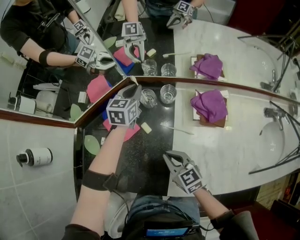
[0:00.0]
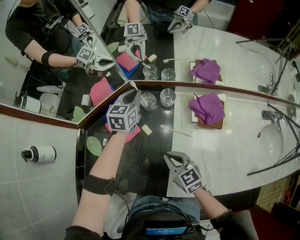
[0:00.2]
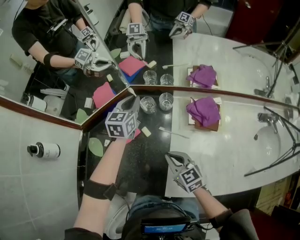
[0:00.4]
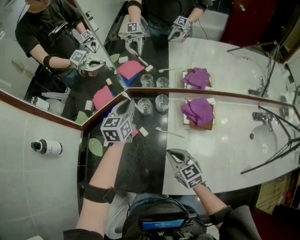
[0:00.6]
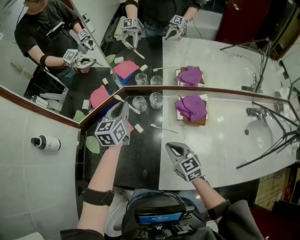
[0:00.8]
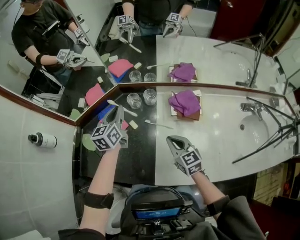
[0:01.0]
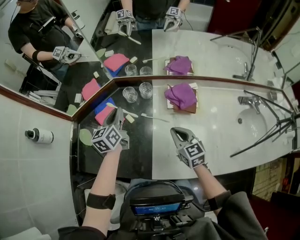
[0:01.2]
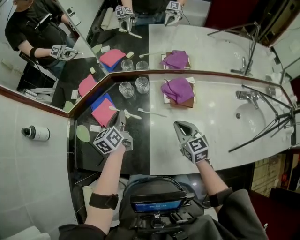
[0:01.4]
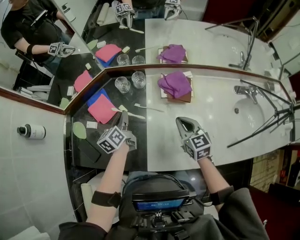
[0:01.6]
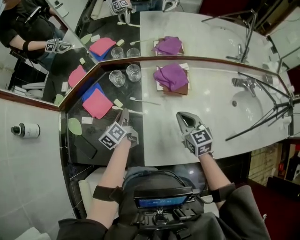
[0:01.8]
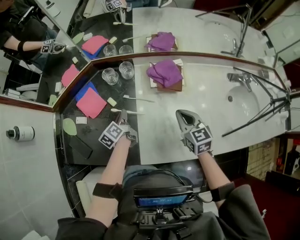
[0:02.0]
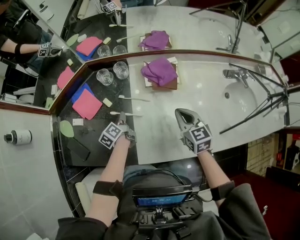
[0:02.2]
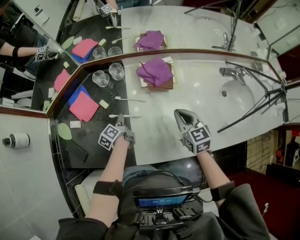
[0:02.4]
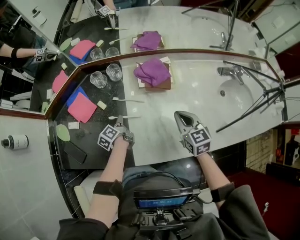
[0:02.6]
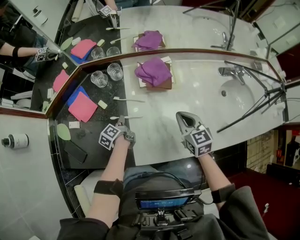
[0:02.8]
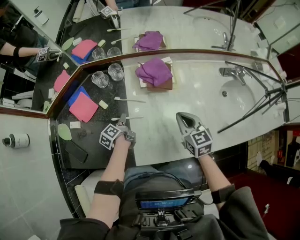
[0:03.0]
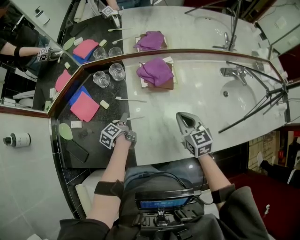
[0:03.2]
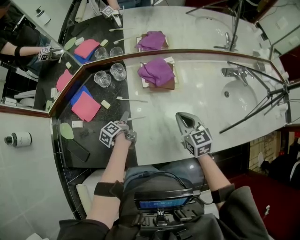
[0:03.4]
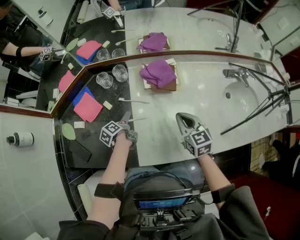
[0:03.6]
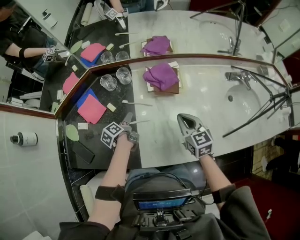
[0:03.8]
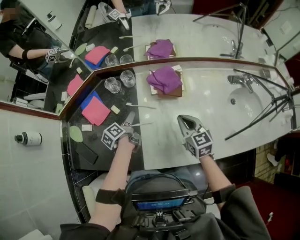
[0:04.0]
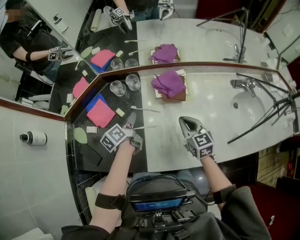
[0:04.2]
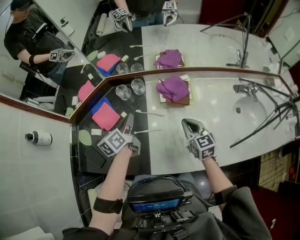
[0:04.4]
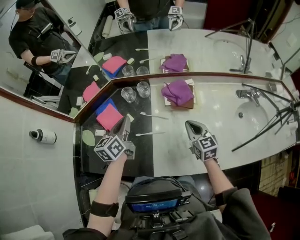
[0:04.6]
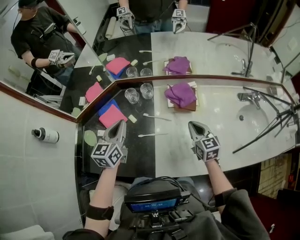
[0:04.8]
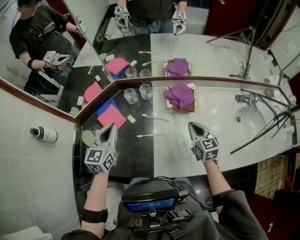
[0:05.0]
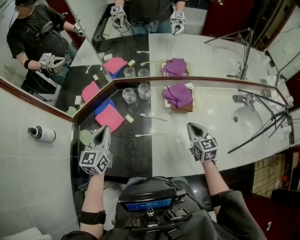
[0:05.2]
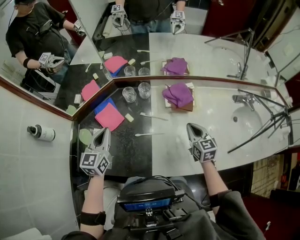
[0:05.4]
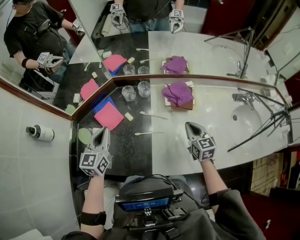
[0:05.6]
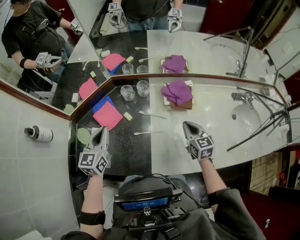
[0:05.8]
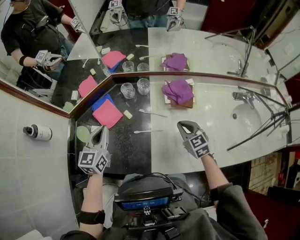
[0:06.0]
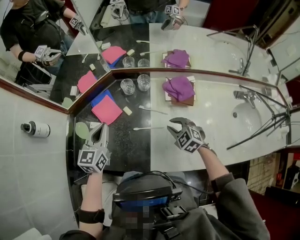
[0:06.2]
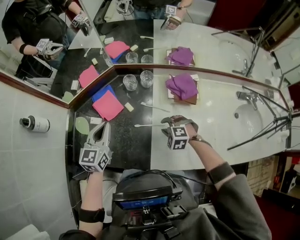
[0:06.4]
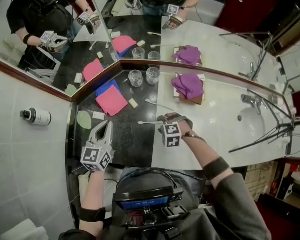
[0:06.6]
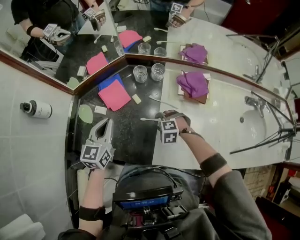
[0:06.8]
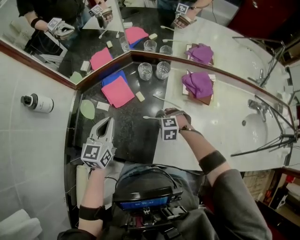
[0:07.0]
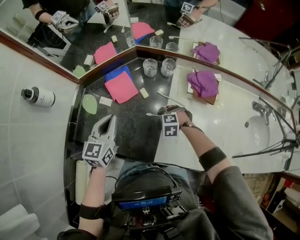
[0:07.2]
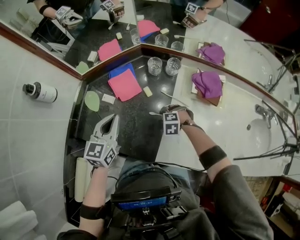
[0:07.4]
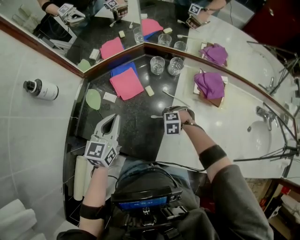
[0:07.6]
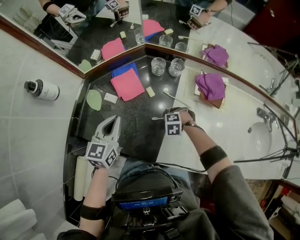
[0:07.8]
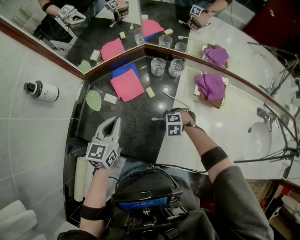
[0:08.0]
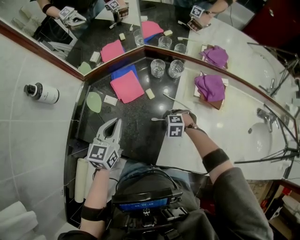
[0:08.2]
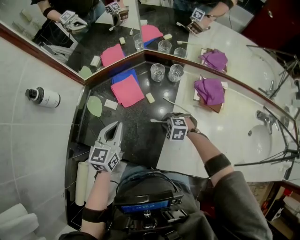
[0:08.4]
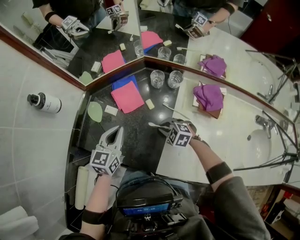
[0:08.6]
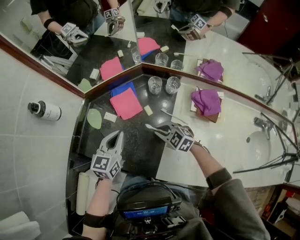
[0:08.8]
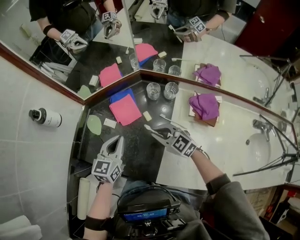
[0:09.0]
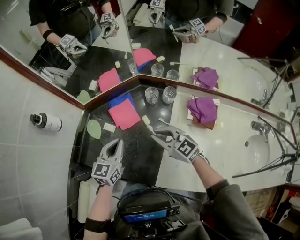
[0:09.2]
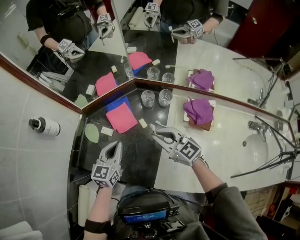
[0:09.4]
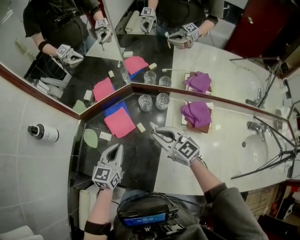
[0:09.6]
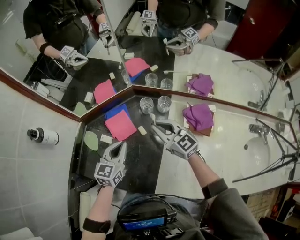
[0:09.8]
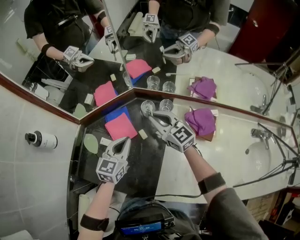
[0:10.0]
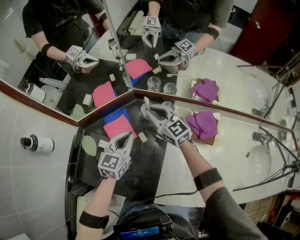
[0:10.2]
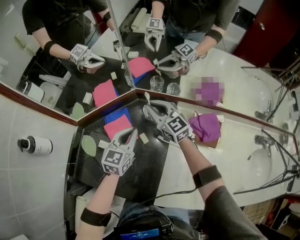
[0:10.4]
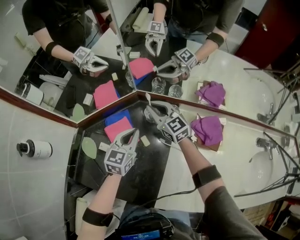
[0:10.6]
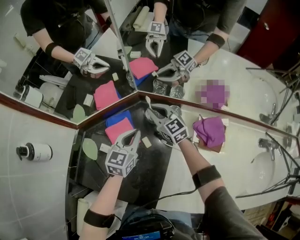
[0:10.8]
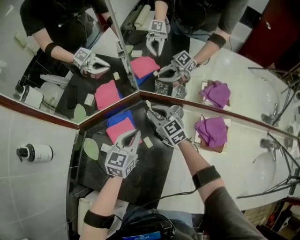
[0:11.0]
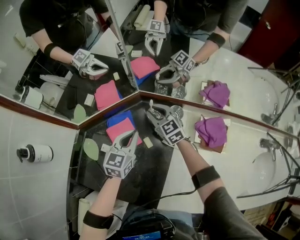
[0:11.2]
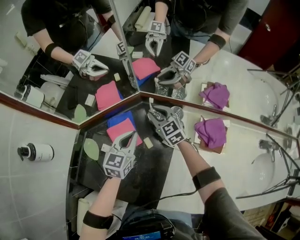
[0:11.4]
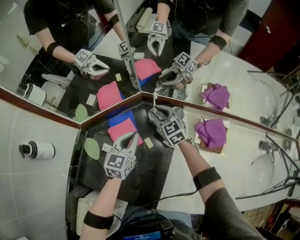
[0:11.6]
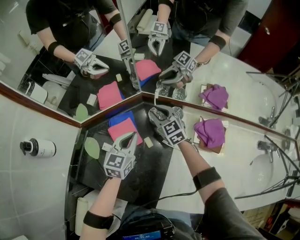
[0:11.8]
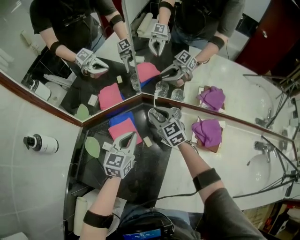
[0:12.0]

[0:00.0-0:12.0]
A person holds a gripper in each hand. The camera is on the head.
0:00.0 to 0:01.6: The right gripper moves to the right, roughly 20 cm, while the left gripper shifts approximately 20 cm backward, and turns by about 40 degrees.
0:01.6 to 0:03.0: The left gripper shifts approximately 15 cm downward, swivels approximately 30 degrees, and opens its fingers, while the right gripper shifts some 10 cm to the right.
0:03.0 to 0:04.4: The right gripper moves some 5 cm, while the left gripper shifts roughly 20 cm upward, changes its angle by roughly 30 degrees, and closes up.
0:04.4 to 0:06.0: The right gripper moves to the left, some 5 cm. Meanwhile the left gripper is displaced to the left by some 15 cm, and changes its angle by approximately 40 degrees.
0:06.0 to 0:07.6: The right gripper goes approximately 20 cm downward, points its fingers about 40 degrees further downward, and opens and closes again. Meanwhile the left gripper changes place by roughly 10 cm.
0:07.6 to 0:09.0: The right gripper goes about 20 cm upward, and tilts its fingers some 50 degrees upward.
0:09.0 to 0:10.4: The right gripper heads forward, covering approximately 20 cm, and changes its angle by about 30 degrees. The left gripper shifts about 15 cm forward and to the right.

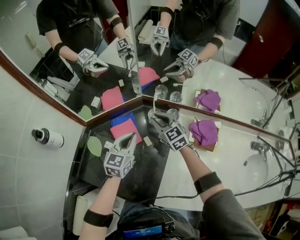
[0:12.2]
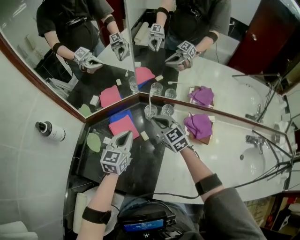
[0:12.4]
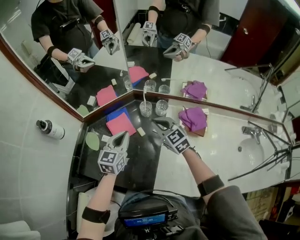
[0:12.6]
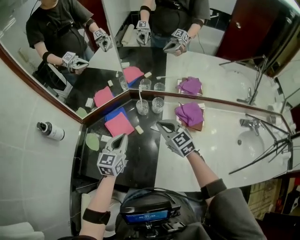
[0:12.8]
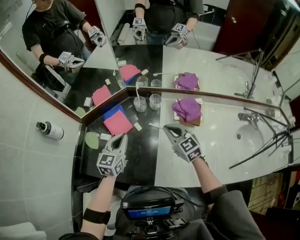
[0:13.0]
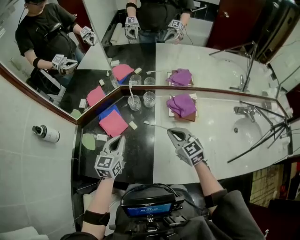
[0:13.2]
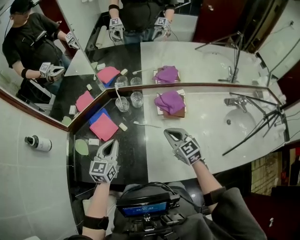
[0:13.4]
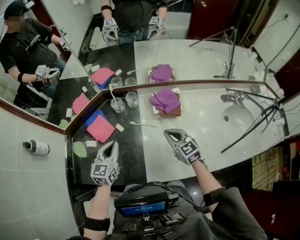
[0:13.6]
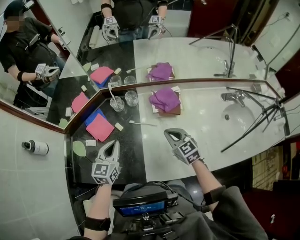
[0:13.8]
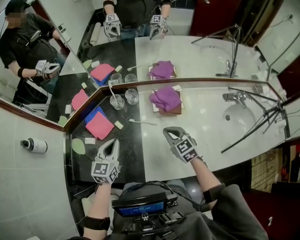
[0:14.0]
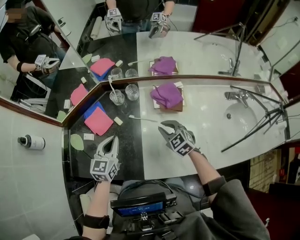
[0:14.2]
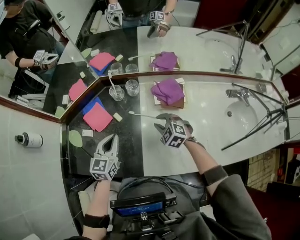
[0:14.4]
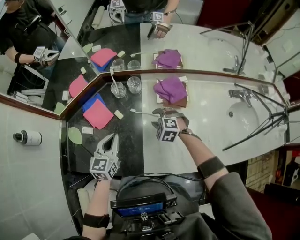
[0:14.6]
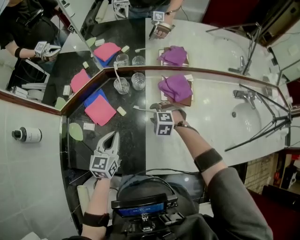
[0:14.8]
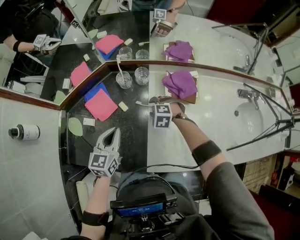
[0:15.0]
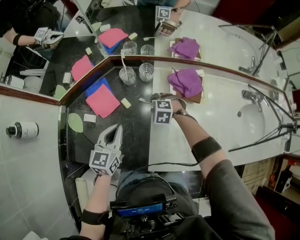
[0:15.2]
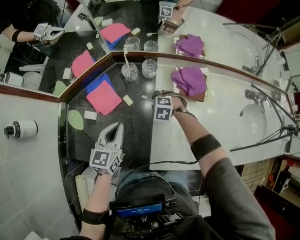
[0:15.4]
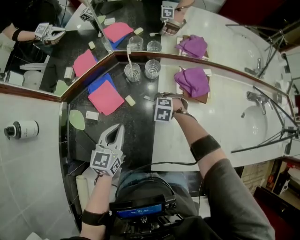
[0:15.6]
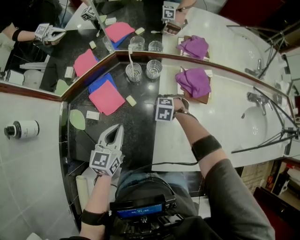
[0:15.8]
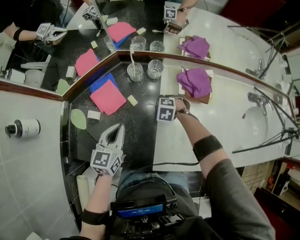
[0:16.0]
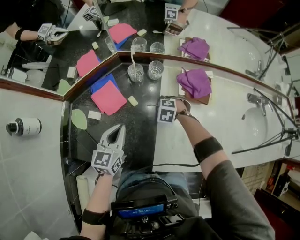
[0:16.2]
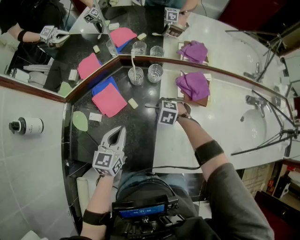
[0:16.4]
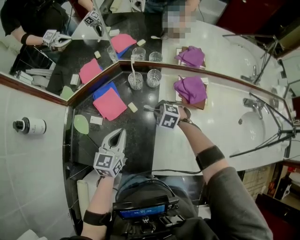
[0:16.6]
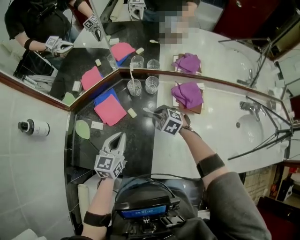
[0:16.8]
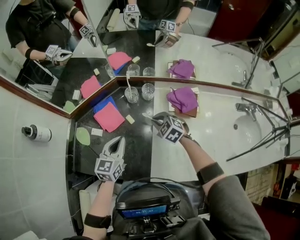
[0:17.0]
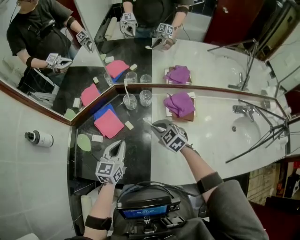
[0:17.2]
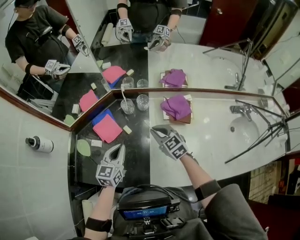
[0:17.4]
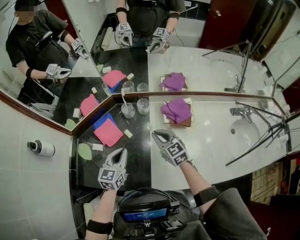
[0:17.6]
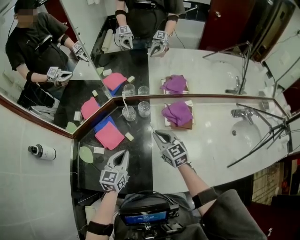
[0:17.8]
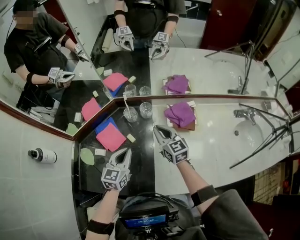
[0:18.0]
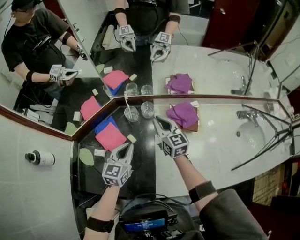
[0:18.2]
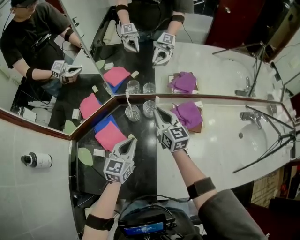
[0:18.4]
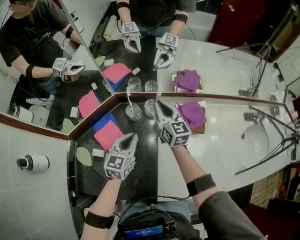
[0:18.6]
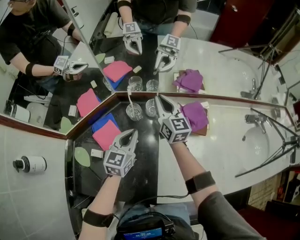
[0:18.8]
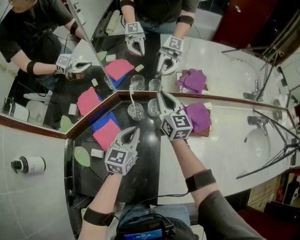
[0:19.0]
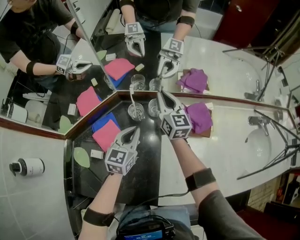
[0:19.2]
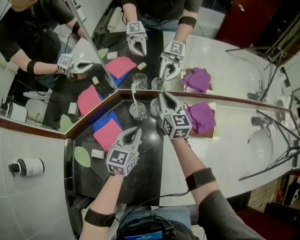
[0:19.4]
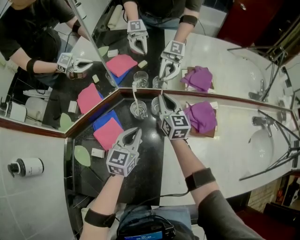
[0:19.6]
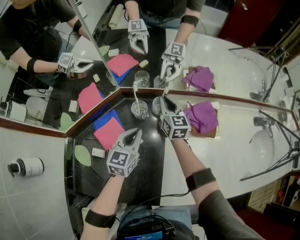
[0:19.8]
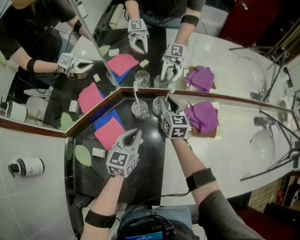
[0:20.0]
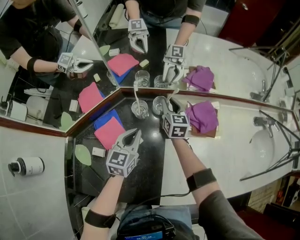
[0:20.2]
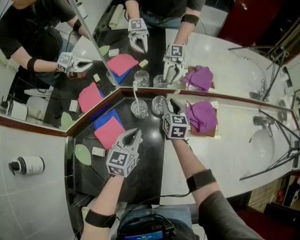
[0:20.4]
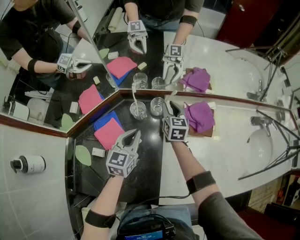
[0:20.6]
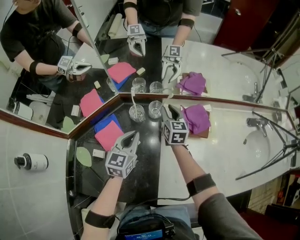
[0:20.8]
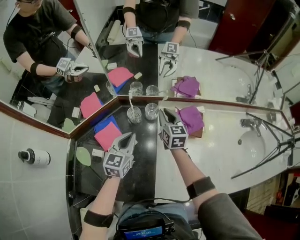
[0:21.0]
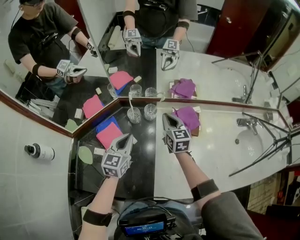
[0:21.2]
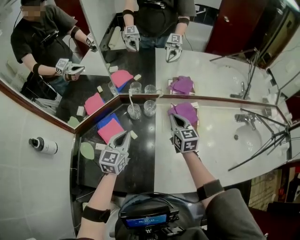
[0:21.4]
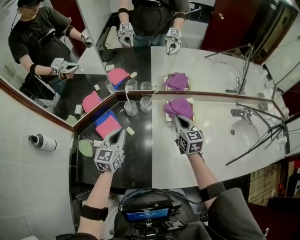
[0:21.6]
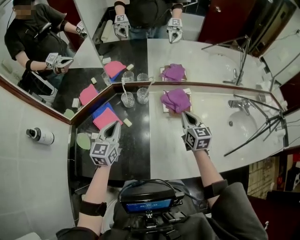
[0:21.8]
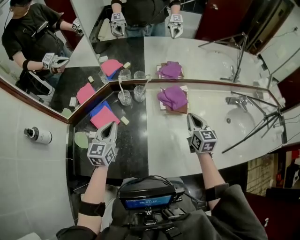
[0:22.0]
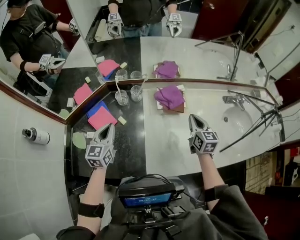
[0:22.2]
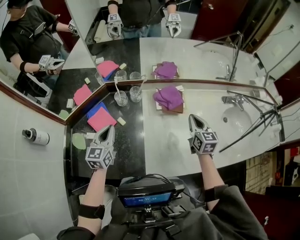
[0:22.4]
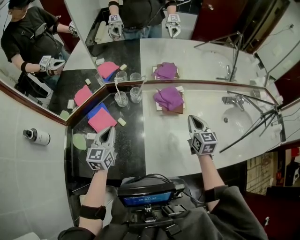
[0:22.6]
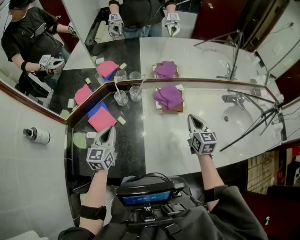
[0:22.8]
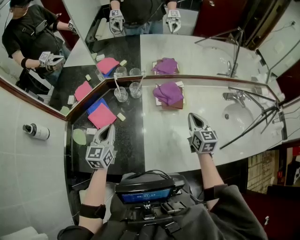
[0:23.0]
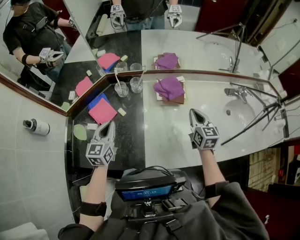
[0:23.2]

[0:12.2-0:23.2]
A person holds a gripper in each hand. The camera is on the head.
0:12.2 to 0:13.8: The right gripper heads backward and to the right, covering some 35 cm, and rotates about 20 degrees; the left gripper travels backward and to the right by some 15 cm.
0:13.8 to 0:15.4: The left gripper travels downward by some 5 cm. The right gripper is displaced downward by about 20 cm, tilts its fingers some 40 degrees downward, and opens.
0:15.4 to 0:17.0: The right gripper shifts some 15 cm upward, swivels some 30 degrees, and closes.
0:17.0 to 0:18.4: The left gripper heads forward and to the right, covering approximately 10 cm, while the right gripper is displaced forward and upward by about 15 cm, and tilts its fingers roughly 40 degrees upward.
0:18.4 to 0:20.0: The right gripper heads downward and forward, covering roughly 15 cm, while the left gripper shifts roughly 10 cm downward and forward.
0:20.0 to 0:21.6: The right gripper goes approximately 25 cm backward, to the right and upward, and closes its fingers, while the left gripper shifts approximately 15 cm upward and backward.
0:21.6 to 0:23.2: The left gripper goes some 5 cm backward. Meanwhile the right gripper moves to the right and backward, about 15 cm.
